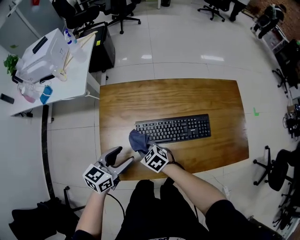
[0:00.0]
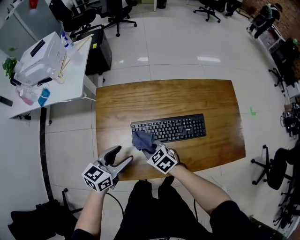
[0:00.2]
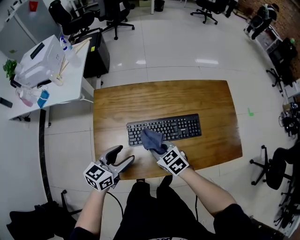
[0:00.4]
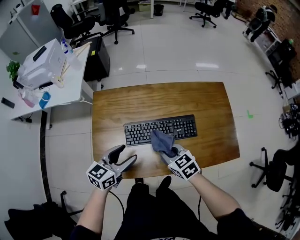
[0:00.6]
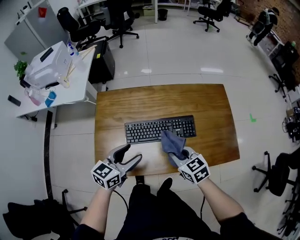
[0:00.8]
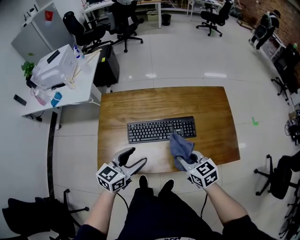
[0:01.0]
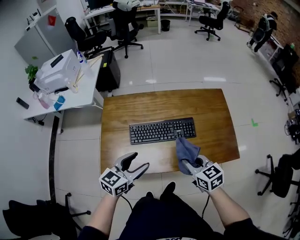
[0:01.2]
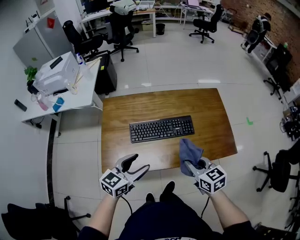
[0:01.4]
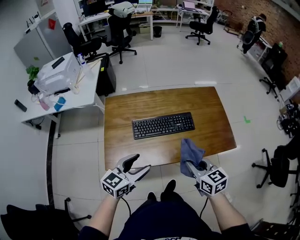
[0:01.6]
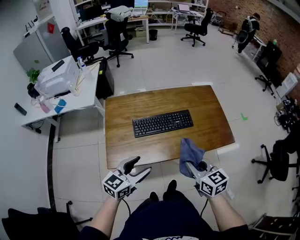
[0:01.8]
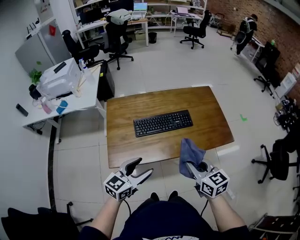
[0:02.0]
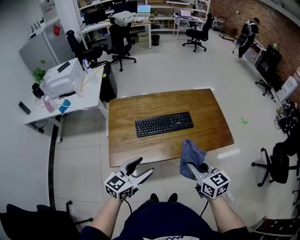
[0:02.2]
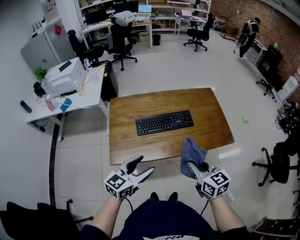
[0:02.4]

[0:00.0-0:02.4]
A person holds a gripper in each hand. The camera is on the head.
0:00.0 to 0:01.2: The right gripper travels to the right, upward and backward by approximately 35 cm, and rotates some 30 degrees. The left gripper shifts about 20 cm to the right, backward and upward.
0:01.2 to 0:02.4: The right gripper heads backward and upward, covering approximately 20 cm. Meanwhile the left gripper moves backward, approximately 15 cm.

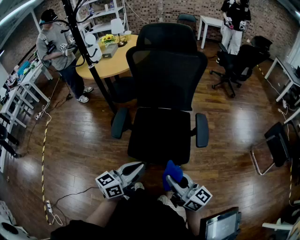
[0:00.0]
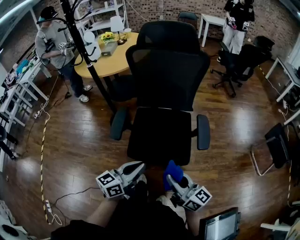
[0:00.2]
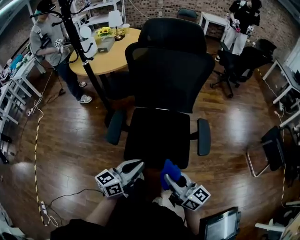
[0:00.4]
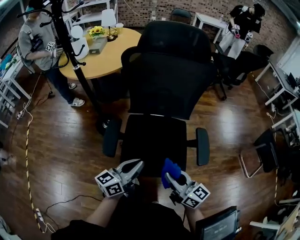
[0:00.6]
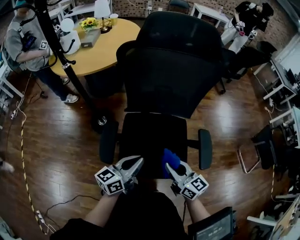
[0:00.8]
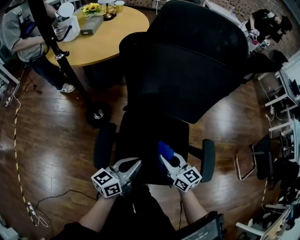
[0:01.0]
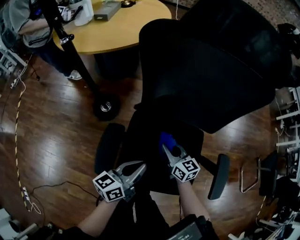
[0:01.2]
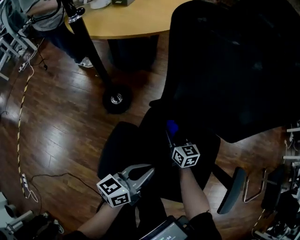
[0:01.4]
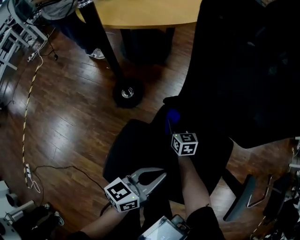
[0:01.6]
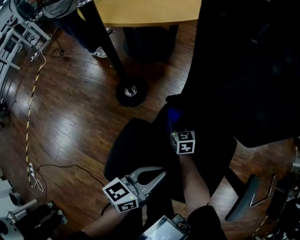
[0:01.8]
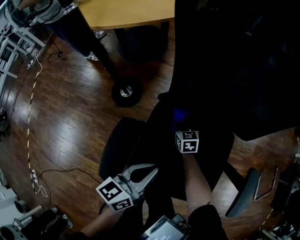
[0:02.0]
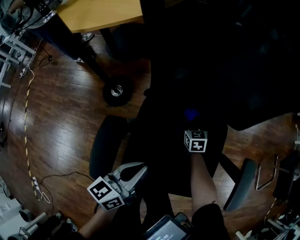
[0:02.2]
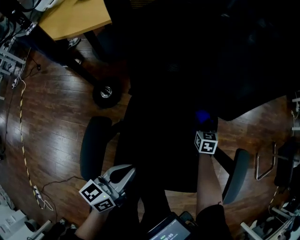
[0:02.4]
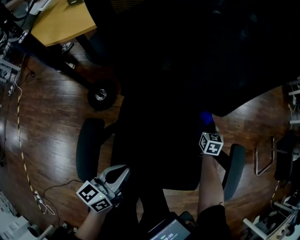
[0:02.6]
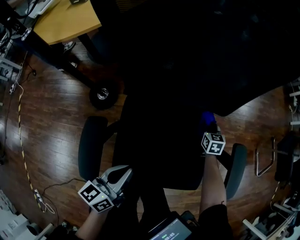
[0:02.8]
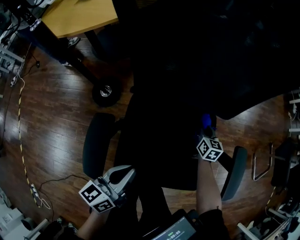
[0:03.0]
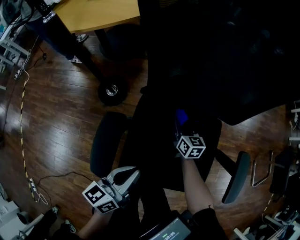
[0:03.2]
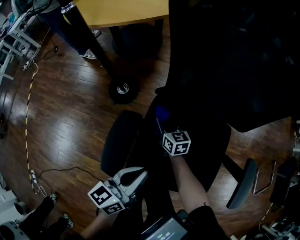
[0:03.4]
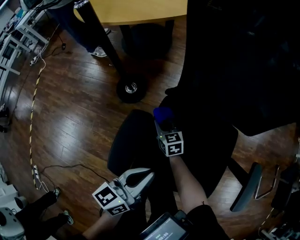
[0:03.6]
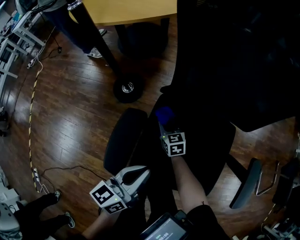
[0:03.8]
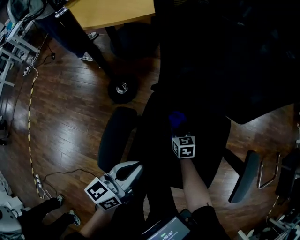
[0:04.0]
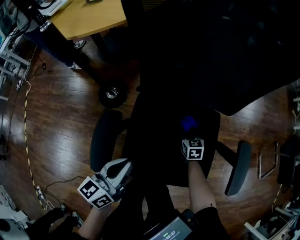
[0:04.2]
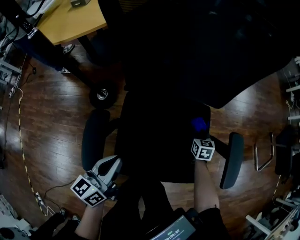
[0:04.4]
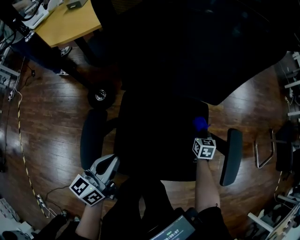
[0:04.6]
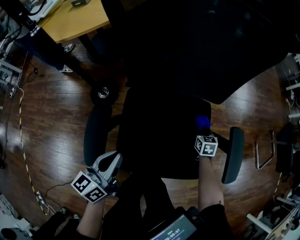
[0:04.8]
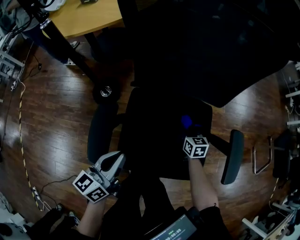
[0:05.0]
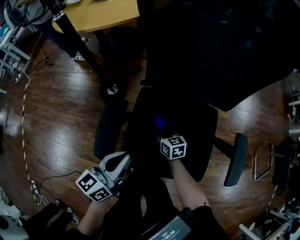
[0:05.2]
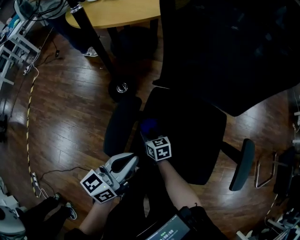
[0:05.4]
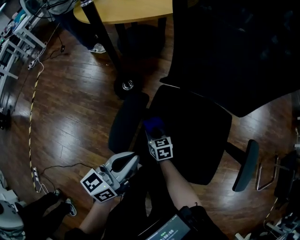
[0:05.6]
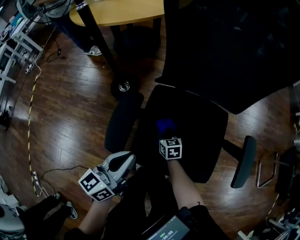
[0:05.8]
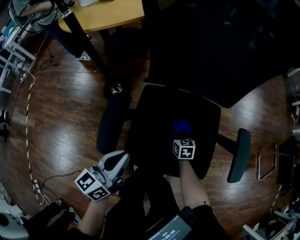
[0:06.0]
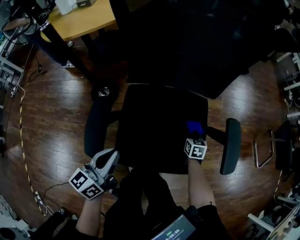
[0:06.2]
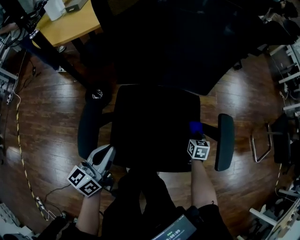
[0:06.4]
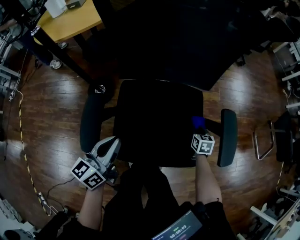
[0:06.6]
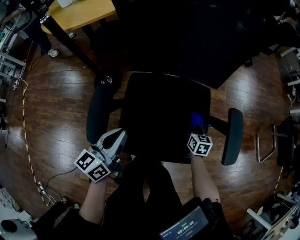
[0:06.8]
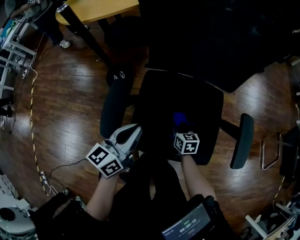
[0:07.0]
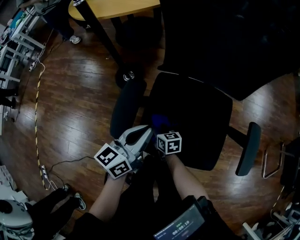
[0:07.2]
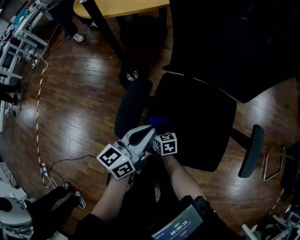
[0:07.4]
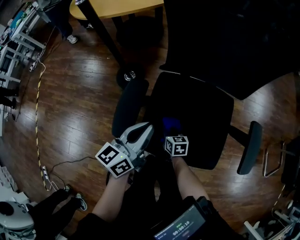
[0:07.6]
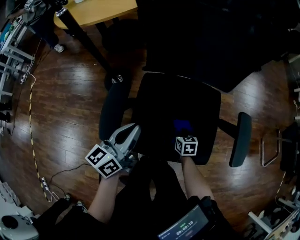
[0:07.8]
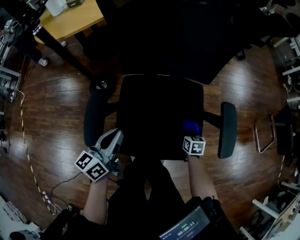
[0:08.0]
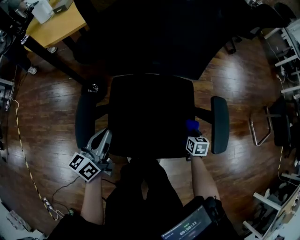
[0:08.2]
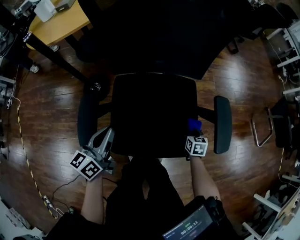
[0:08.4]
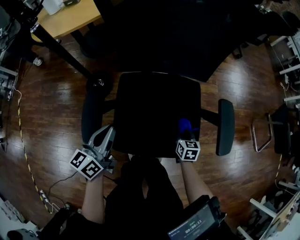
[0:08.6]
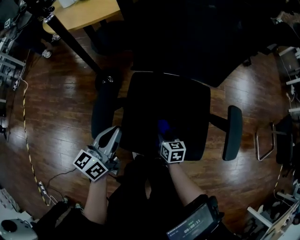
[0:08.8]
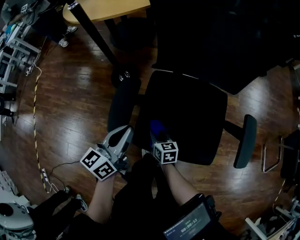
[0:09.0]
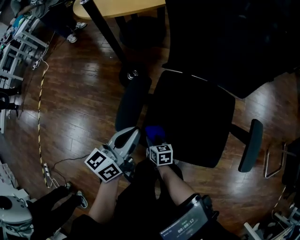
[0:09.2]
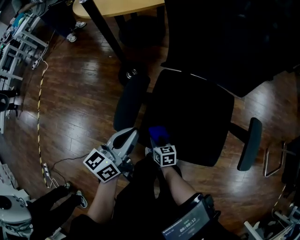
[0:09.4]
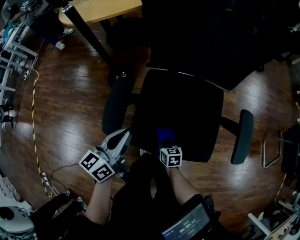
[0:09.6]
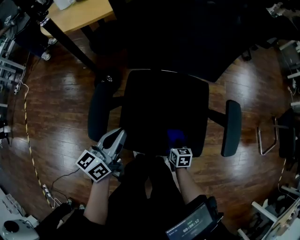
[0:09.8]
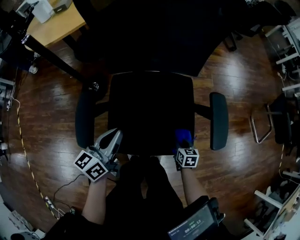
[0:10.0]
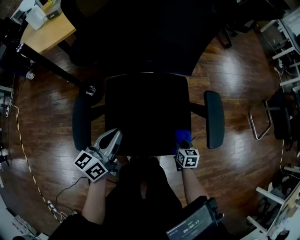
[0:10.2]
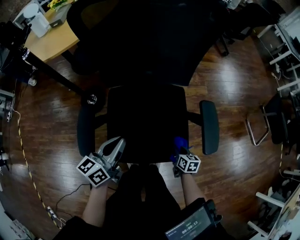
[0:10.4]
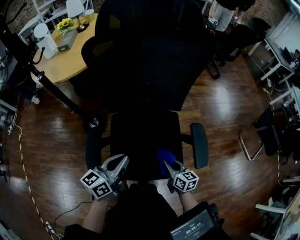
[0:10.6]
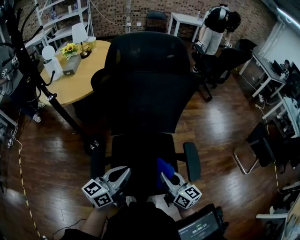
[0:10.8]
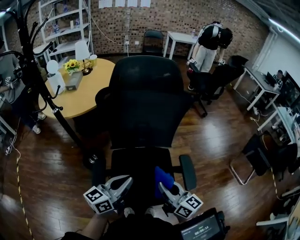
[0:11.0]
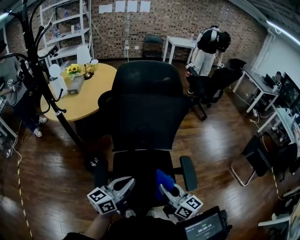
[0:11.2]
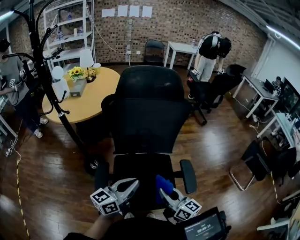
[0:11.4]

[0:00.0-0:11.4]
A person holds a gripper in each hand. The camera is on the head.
0:00.0 to 0:01.4: The left gripper goes about 40 cm forward and downward. Meanwhile the right gripper is displaced forward and downward by approximately 60 cm, and tips its fingers downward by some 30 degrees.
0:01.4 to 0:02.8: The right gripper heads to the right, covering approximately 30 cm, and rotates some 40 degrees.
0:02.8 to 0:04.2: The left gripper moves approximately 5 cm.
0:04.2 to 0:05.6: The left gripper changes place by approximately 5 cm, while the right gripper shifts by approximately 25 cm, and rotates about 20 degrees.
0:05.6 to 0:07.2: The left gripper ends up roughly 5 cm from where it was.
0:07.2 to 0:08.6: The right gripper changes place by roughly 30 cm, and changes its angle by roughly 30 degrees.
0:10.0 to 0:11.4: The left gripper goes roughly 25 cm upward, and changes its angle by some 20 degrees. The right gripper heads upward, covering approximately 40 cm, and angles its fingers upward, by about 50 degrees.

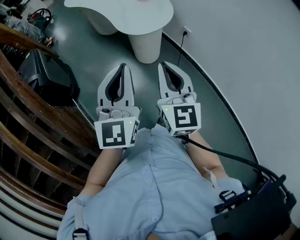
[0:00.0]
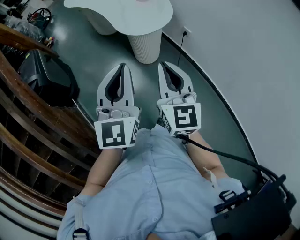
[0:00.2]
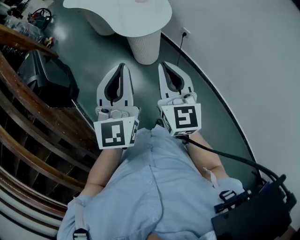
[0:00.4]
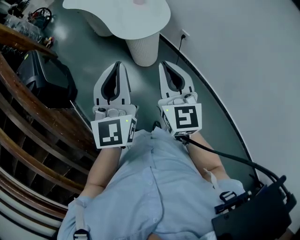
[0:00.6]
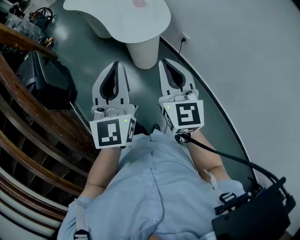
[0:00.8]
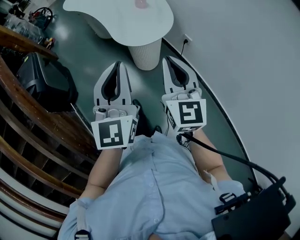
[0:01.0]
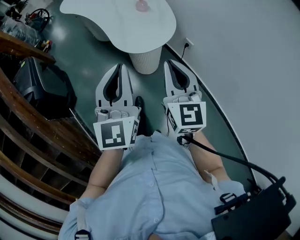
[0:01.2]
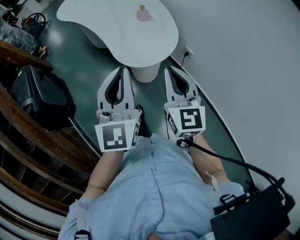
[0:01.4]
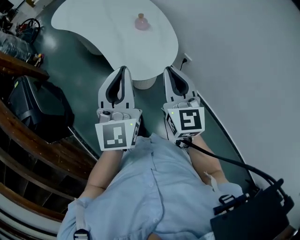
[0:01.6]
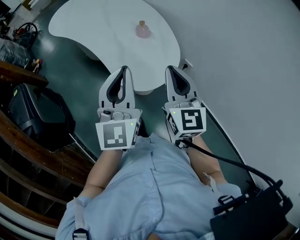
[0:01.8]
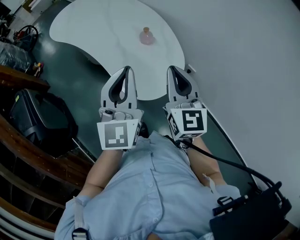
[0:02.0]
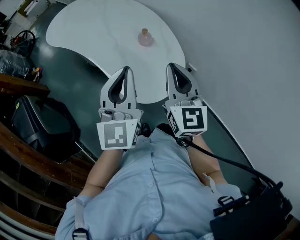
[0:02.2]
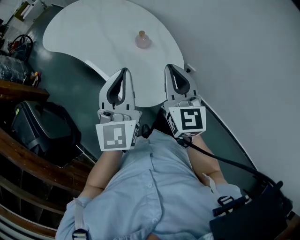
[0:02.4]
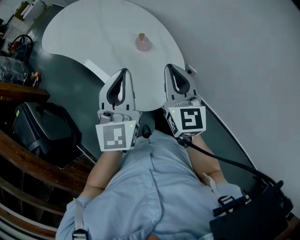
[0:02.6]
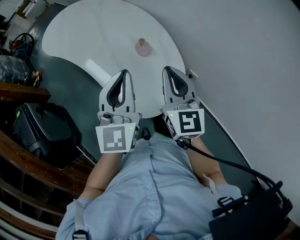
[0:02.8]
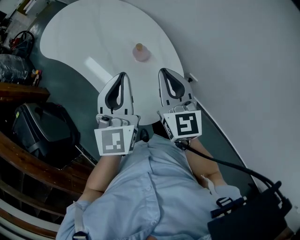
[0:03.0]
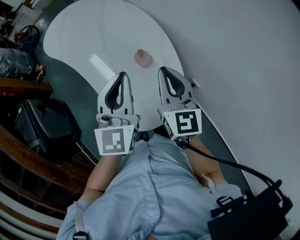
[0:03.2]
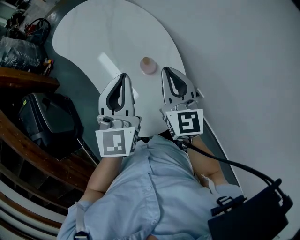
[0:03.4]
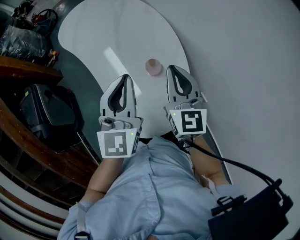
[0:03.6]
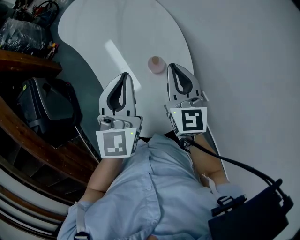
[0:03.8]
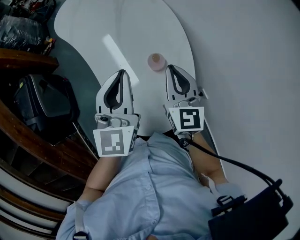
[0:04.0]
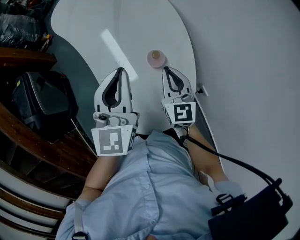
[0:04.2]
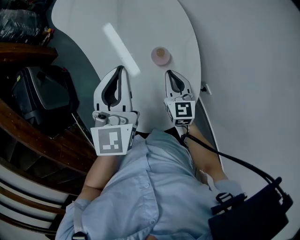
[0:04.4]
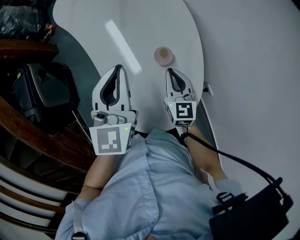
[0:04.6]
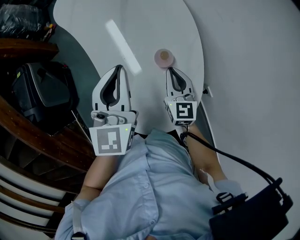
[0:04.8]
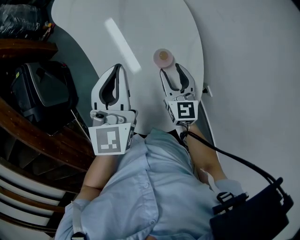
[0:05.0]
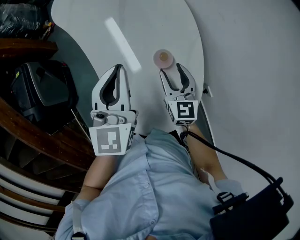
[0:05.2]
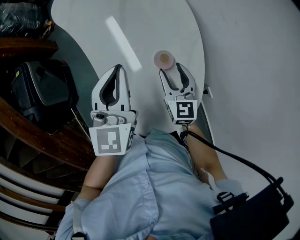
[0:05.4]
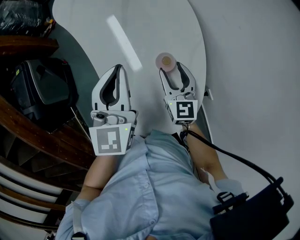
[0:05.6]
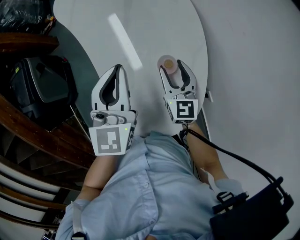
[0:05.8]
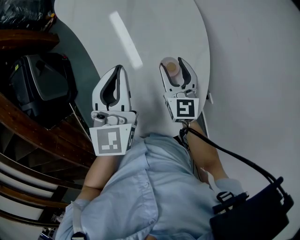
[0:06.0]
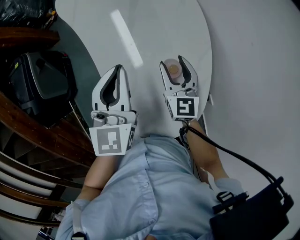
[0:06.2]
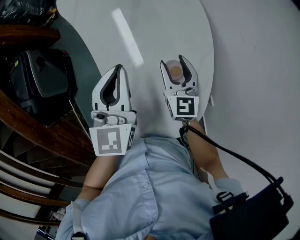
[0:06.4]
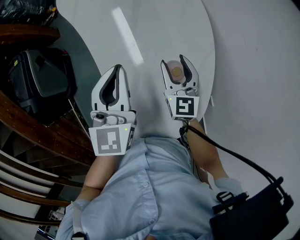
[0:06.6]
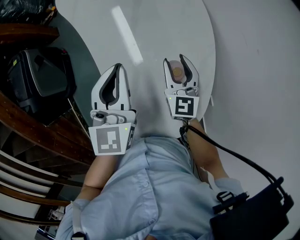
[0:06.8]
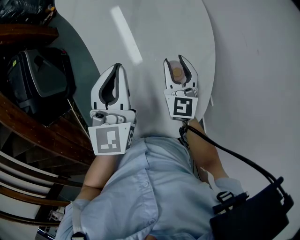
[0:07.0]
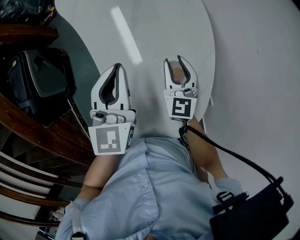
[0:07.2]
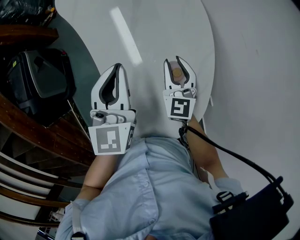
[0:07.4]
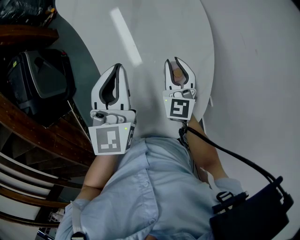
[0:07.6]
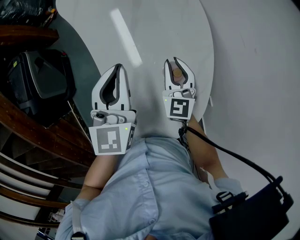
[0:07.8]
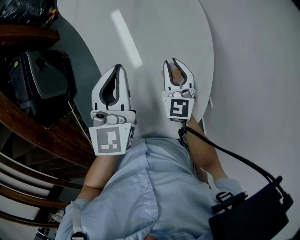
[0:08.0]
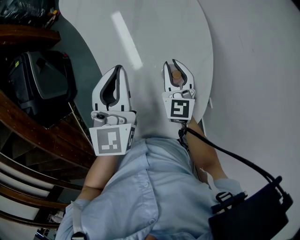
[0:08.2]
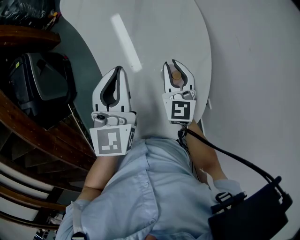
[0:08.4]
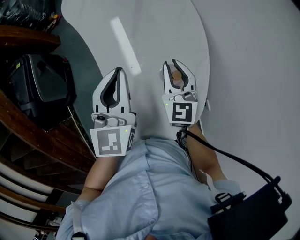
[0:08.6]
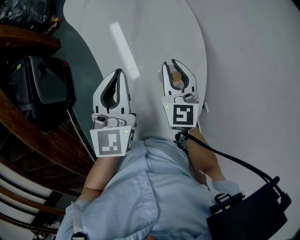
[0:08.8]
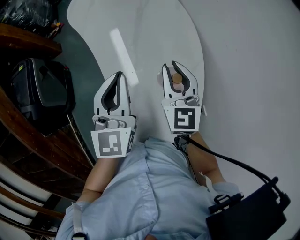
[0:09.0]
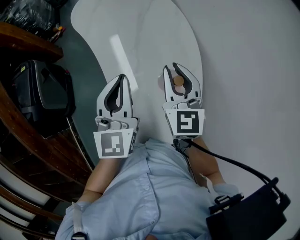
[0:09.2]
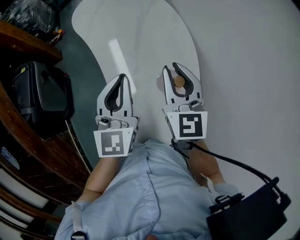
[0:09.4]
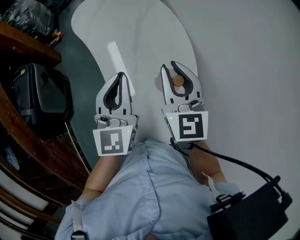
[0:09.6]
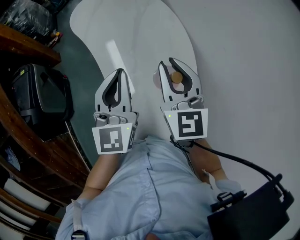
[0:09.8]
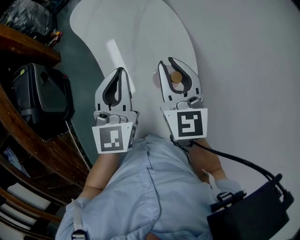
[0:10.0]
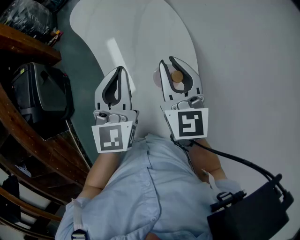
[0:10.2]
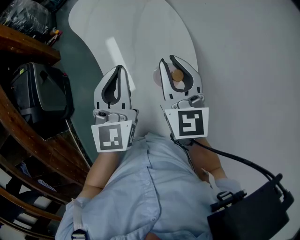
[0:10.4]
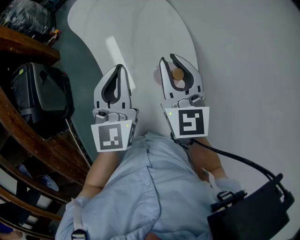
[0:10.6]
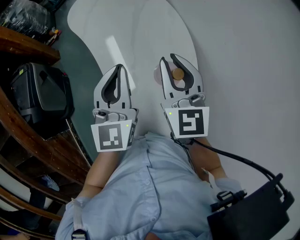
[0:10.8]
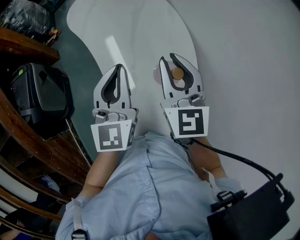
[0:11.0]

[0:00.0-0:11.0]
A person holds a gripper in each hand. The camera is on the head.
0:00.0 to 0:01.6: Both grippers travel together forward, roughly 25 cm.
0:01.6 to 0:03.2: The grippers both shift forward by some 20 cm.
0:03.2 to 0:04.8: The left gripper heads forward, covering about 5 cm, while the right gripper goes roughly 15 cm downward.
0:04.8 to 0:06.2: The right gripper heads forward, covering roughly 5 cm, and opens.
0:06.2 to 0:07.8: The right gripper closes its fingers.
0:07.8 to 0:09.4: The left gripper shifts approximately 5 cm upward, while the right gripper shifts approximately 20 cm upward.
0:09.4 to 0:11.0: The grippers move only a little.
